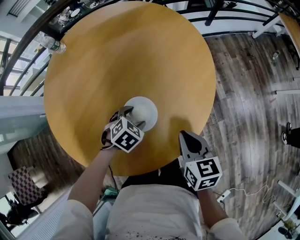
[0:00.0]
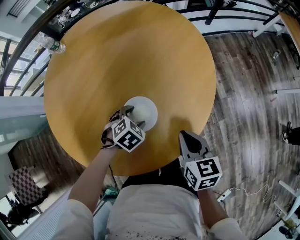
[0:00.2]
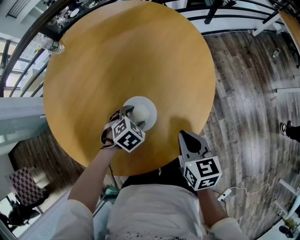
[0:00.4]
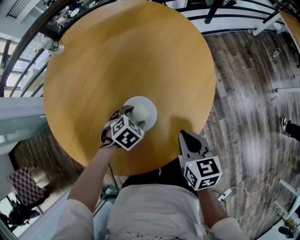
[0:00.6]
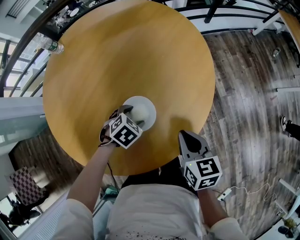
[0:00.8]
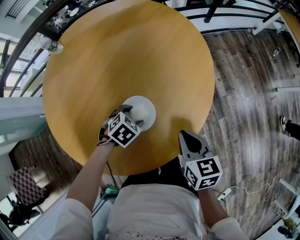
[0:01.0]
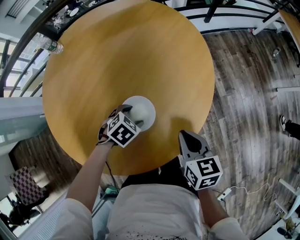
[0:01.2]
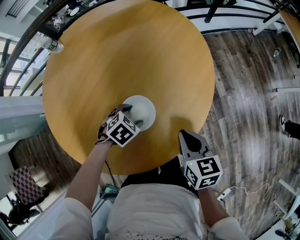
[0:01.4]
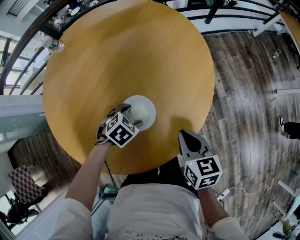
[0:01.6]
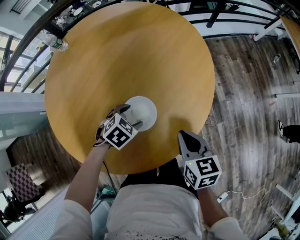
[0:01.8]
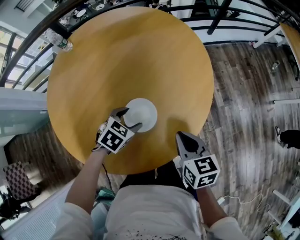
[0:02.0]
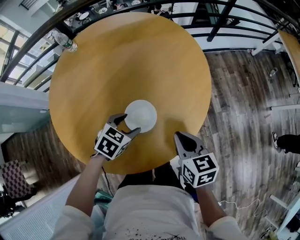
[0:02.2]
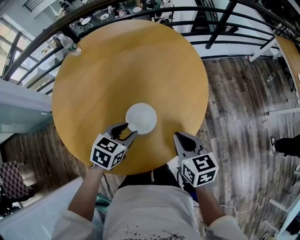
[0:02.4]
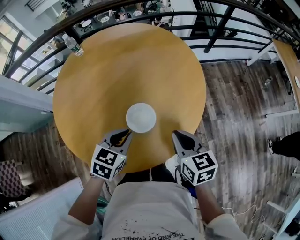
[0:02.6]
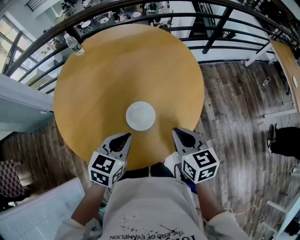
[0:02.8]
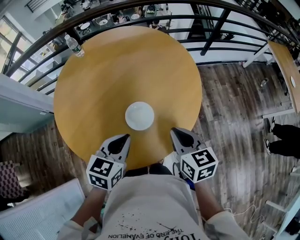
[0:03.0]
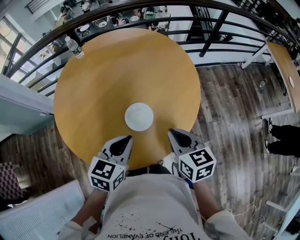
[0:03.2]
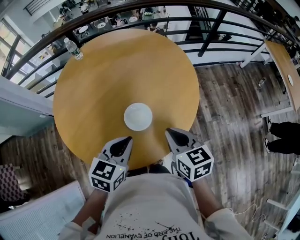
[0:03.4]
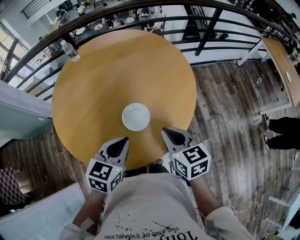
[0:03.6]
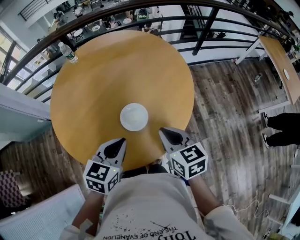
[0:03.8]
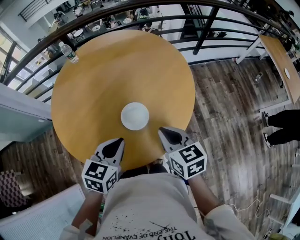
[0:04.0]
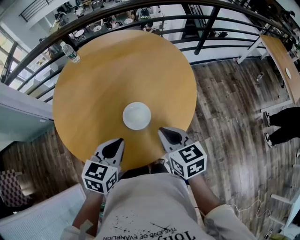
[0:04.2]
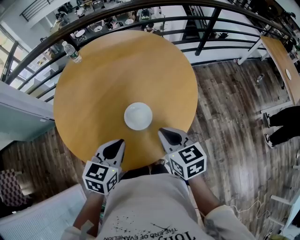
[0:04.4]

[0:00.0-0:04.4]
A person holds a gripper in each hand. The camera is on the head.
0:00.0 to 0:01.4: There are only small adjustments of the grippers.
0:01.4 to 0:03.0: The right gripper heads upward, covering about 10 cm, while the left gripper heads upward and backward, covering some 25 cm, tips its fingers upward by approximately 40 degrees, and closes its fingers.
0:03.0 to 0:04.4: The grippers move only a little.

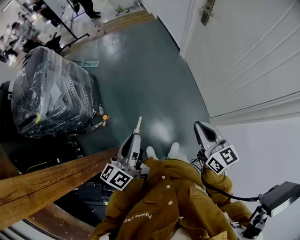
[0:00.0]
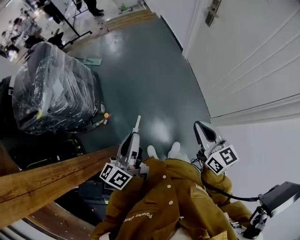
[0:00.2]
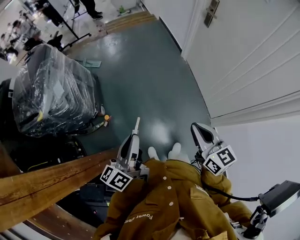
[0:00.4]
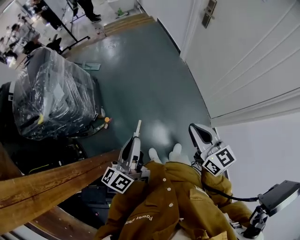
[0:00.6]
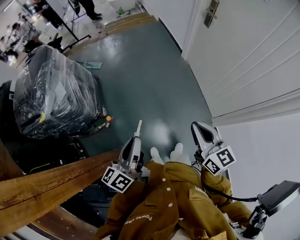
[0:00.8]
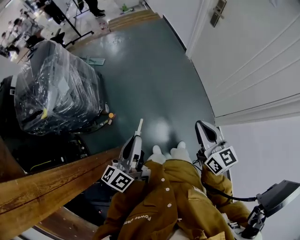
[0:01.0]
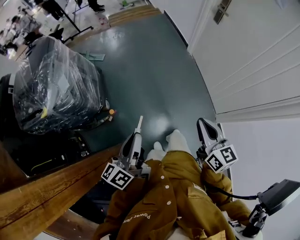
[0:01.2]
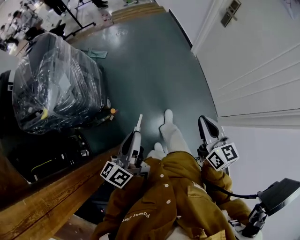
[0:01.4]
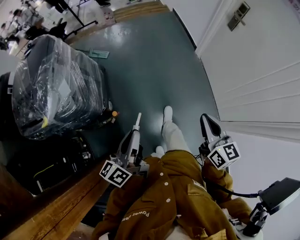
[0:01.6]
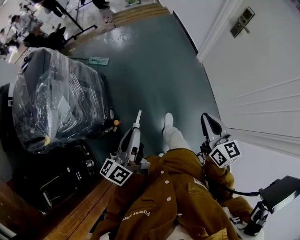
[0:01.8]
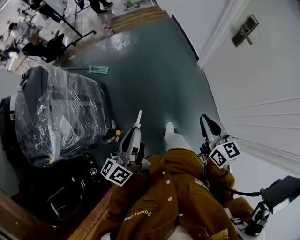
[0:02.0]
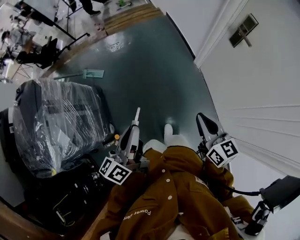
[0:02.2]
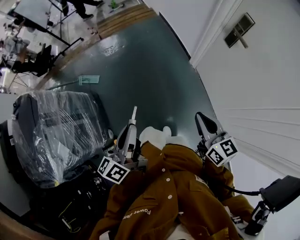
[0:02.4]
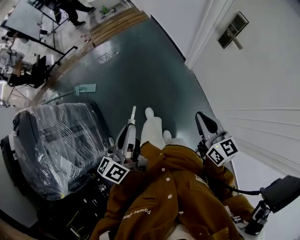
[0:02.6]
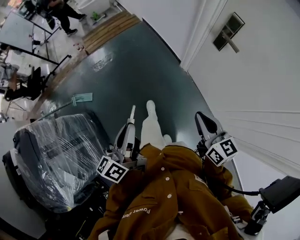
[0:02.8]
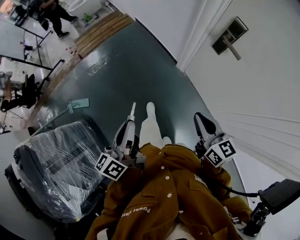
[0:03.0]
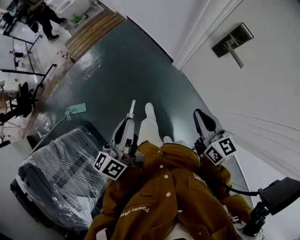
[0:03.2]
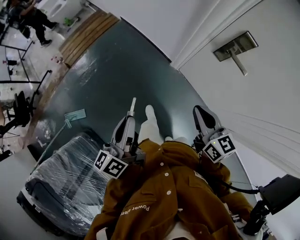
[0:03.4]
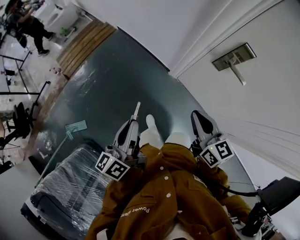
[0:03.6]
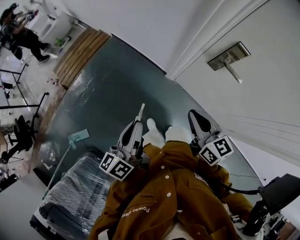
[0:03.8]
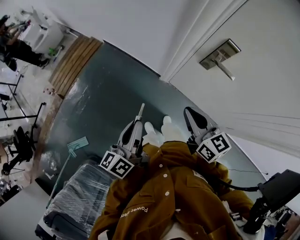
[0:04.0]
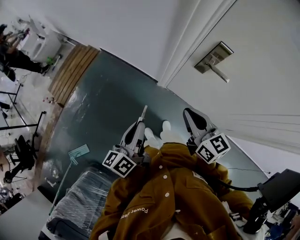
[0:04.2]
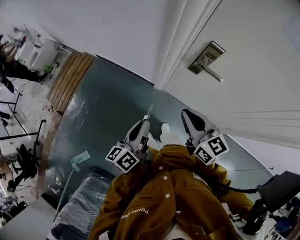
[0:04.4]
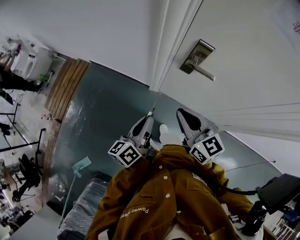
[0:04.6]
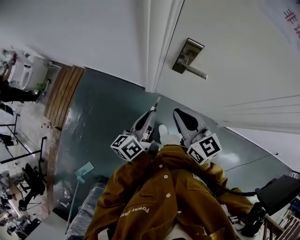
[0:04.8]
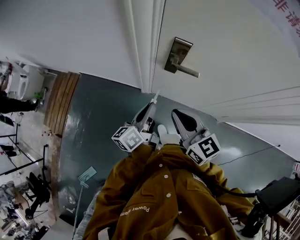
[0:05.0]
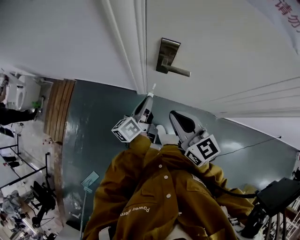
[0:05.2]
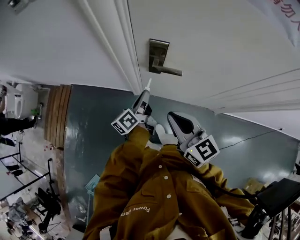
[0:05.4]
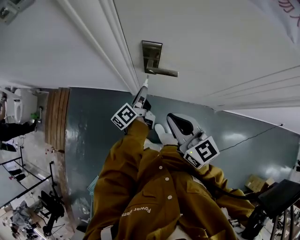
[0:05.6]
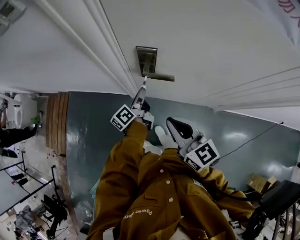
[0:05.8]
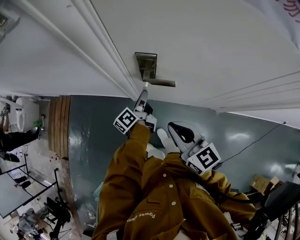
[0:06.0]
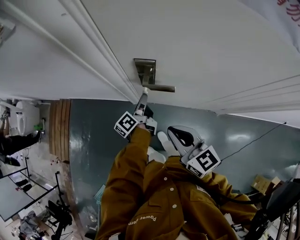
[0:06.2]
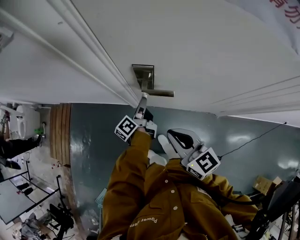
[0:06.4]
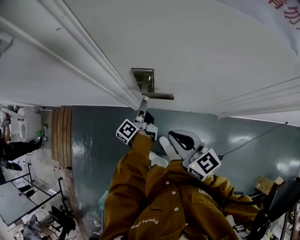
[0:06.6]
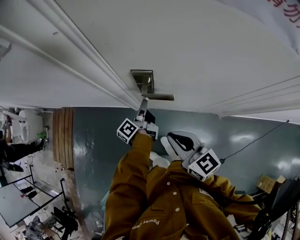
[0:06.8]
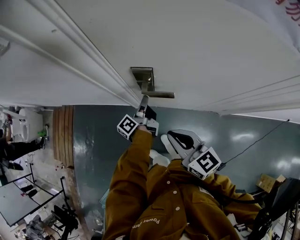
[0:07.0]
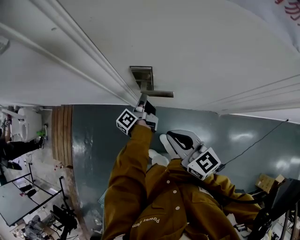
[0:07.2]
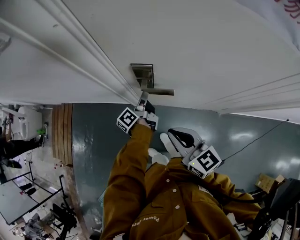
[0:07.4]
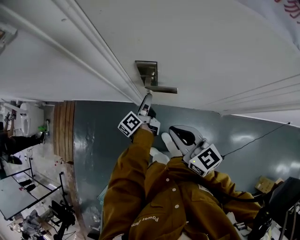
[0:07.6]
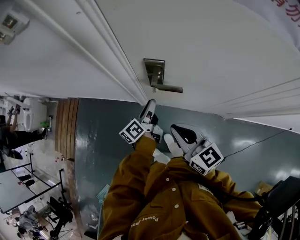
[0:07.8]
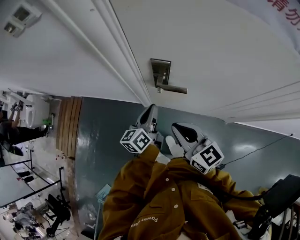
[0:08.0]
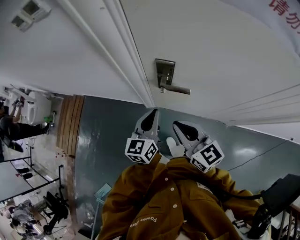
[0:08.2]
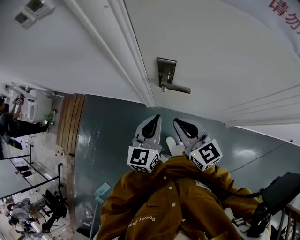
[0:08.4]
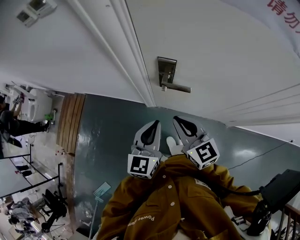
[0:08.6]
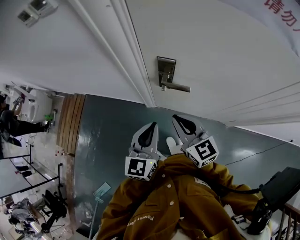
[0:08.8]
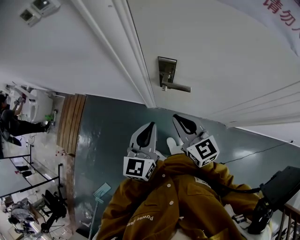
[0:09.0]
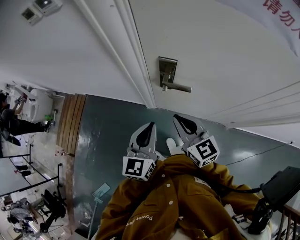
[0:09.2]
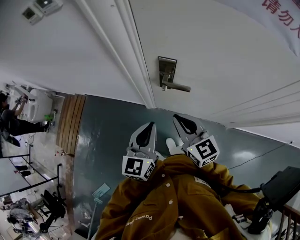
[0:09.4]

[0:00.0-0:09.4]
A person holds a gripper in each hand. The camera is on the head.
0:00.0 to 0:01.6: The right gripper shifts approximately 15 cm forward and to the left. Meanwhile the left gripper goes approximately 20 cm to the left and forward.
0:01.6 to 0:03.2: The two grippers travel together, forward, roughly 60 cm. The left gripper swivels about 20 degrees.
0:03.2 to 0:04.8: The right gripper changes place by some 15 cm, and turns by roughly 20 degrees; the left gripper ends up some 30 cm from where it was, and changes its angle by roughly 40 degrees.
0:04.8 to 0:06.2: The right gripper travels to the right by about 10 cm, while the left gripper moves forward, to the right and downward, approximately 25 cm.
0:06.2 to 0:07.8: The grippers make only small movements.
0:07.8 to 0:09.4: The left gripper is displaced upward and backward by some 20 cm, rolls clockwise, seen from behind, by about 60 degrees, and closes up.

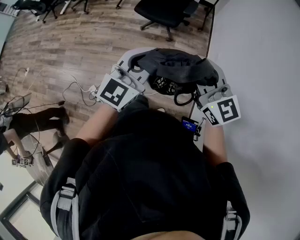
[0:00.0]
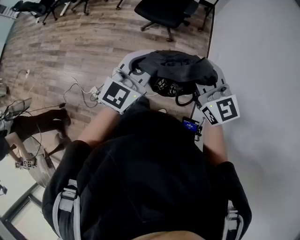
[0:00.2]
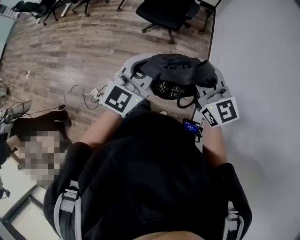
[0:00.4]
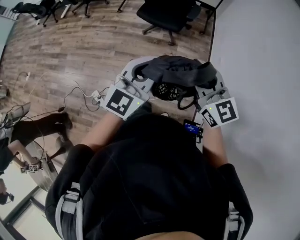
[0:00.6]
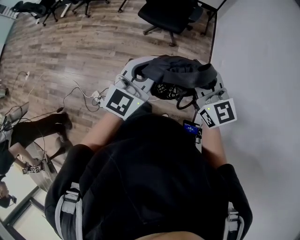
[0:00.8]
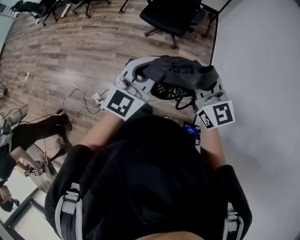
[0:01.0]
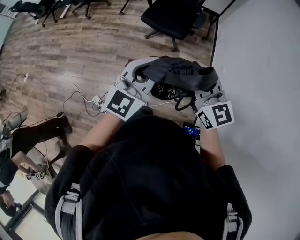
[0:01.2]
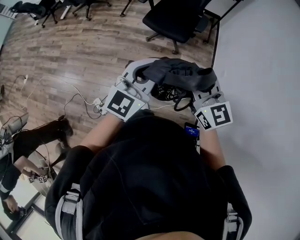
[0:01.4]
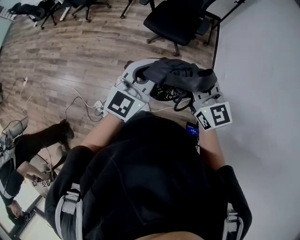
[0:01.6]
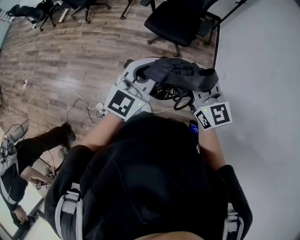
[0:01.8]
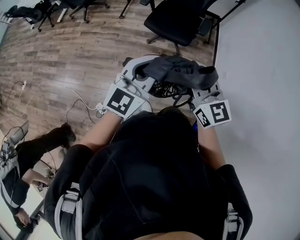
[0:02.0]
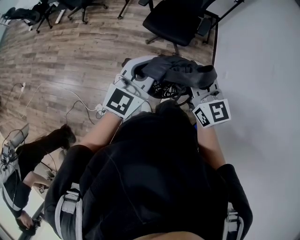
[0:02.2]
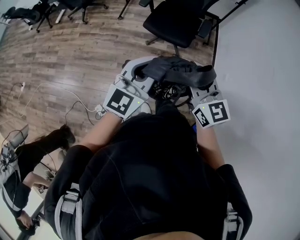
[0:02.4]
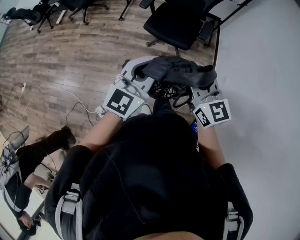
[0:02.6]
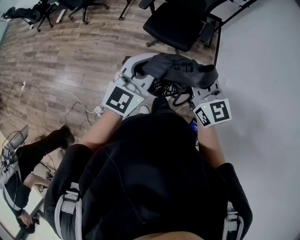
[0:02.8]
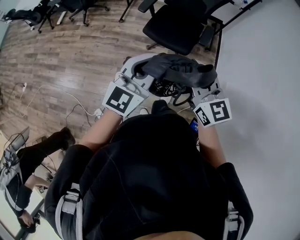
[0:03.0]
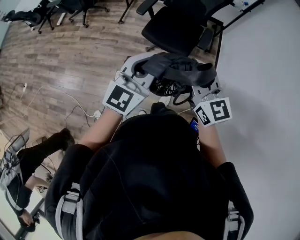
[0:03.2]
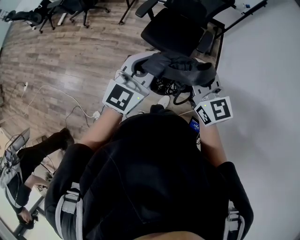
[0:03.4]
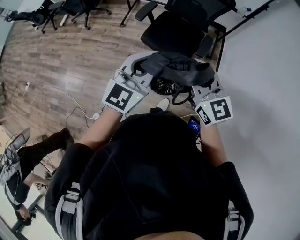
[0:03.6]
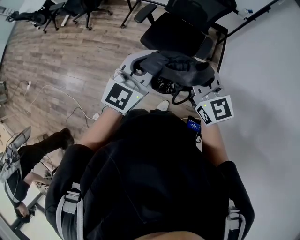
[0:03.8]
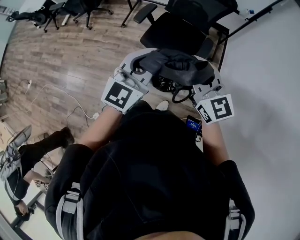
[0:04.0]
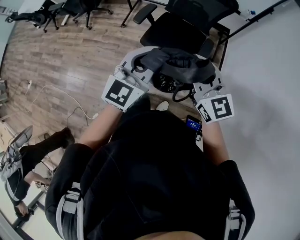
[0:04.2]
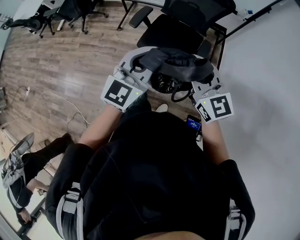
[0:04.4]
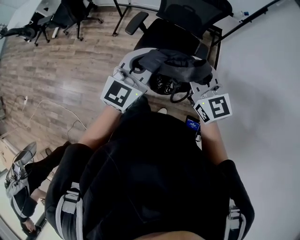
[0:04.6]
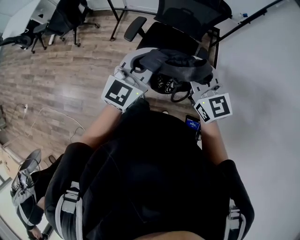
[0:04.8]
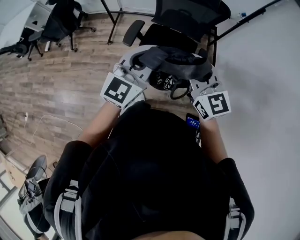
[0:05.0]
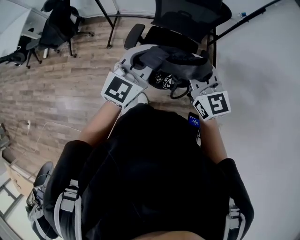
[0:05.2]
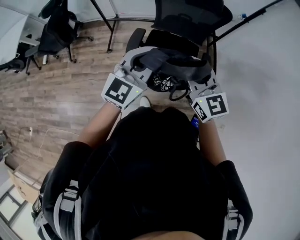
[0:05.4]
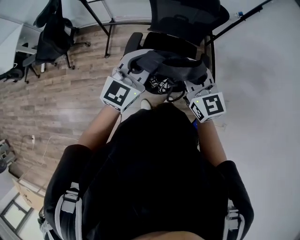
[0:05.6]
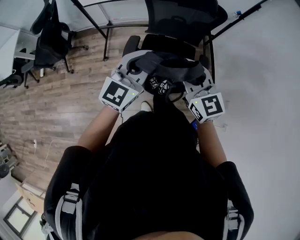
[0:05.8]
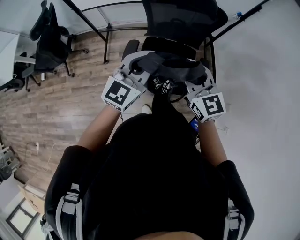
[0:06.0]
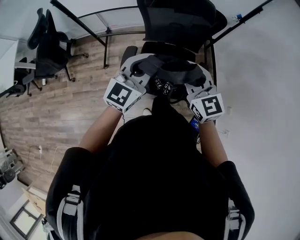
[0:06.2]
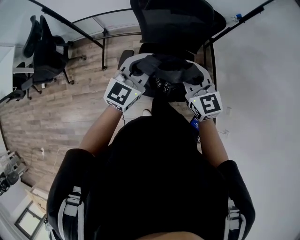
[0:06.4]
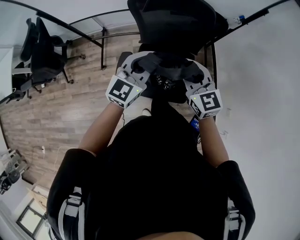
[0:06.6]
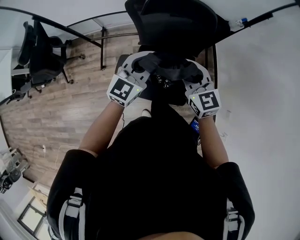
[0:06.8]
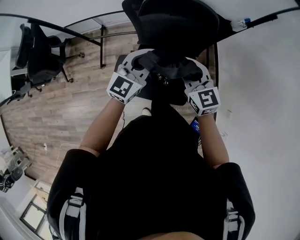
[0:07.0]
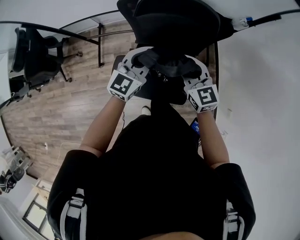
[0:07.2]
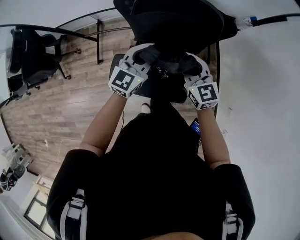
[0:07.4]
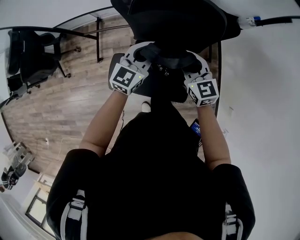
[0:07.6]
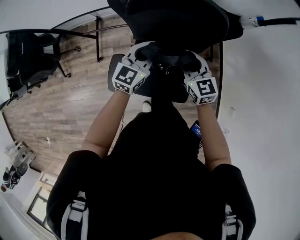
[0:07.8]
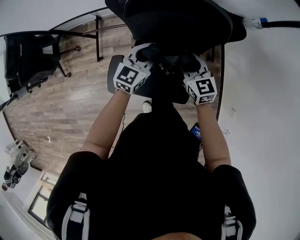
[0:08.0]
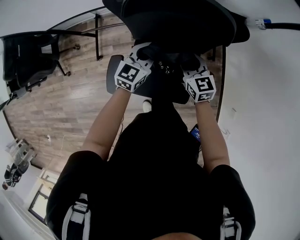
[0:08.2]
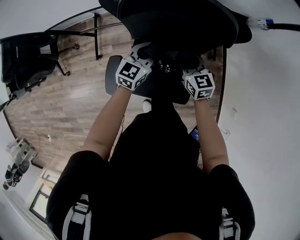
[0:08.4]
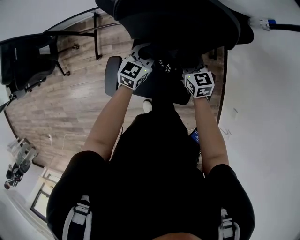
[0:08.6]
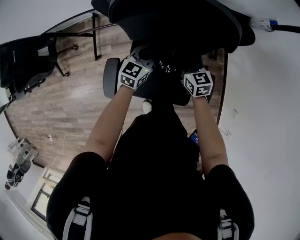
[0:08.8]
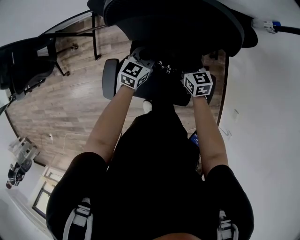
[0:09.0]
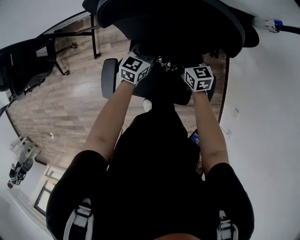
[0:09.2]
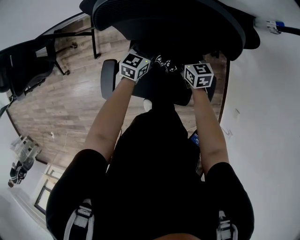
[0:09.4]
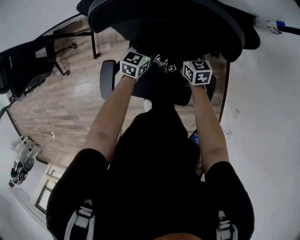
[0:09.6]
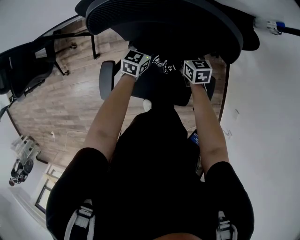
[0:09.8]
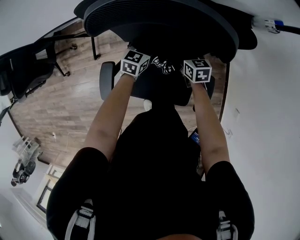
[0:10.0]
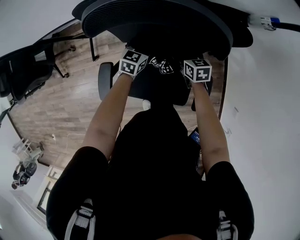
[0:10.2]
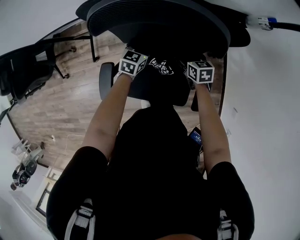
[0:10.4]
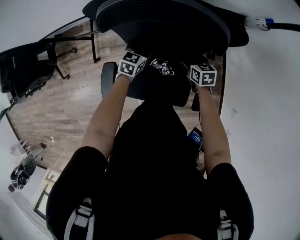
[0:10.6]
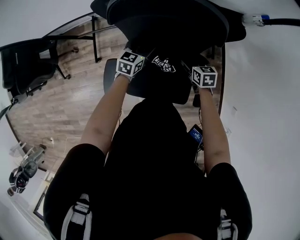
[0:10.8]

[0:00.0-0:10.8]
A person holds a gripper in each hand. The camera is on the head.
0:00.0 to 0:01.6: The grippers both shift to the left and forward by about 25 cm.
0:01.6 to 0:03.0: Both grippers move forward, approximately 15 cm.
0:03.0 to 0:04.6: The two grippers go roughly 25 cm forward.
0:04.6 to 0:06.2: The two grippers go approximately 30 cm forward.
0:06.2 to 0:07.8: The grippers both shift forward and downward by about 35 cm.
0:07.8 to 0:09.2: Both grippers move downward, approximately 20 cm.
0:09.2 to 0:10.8: The right gripper moves to the right, approximately 5 cm, and opens up; the left gripper opens up.
